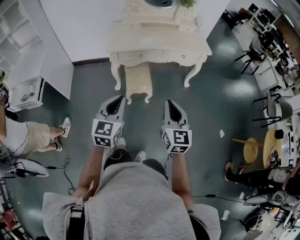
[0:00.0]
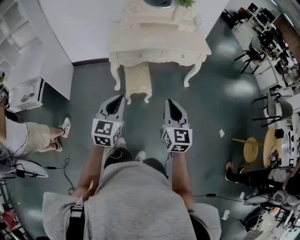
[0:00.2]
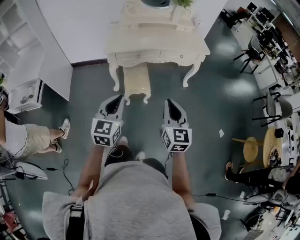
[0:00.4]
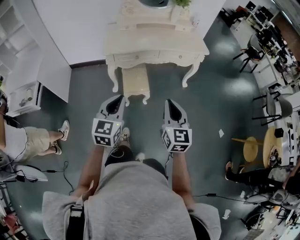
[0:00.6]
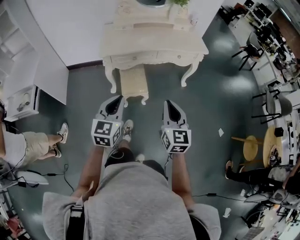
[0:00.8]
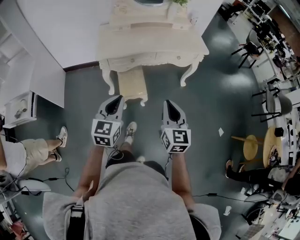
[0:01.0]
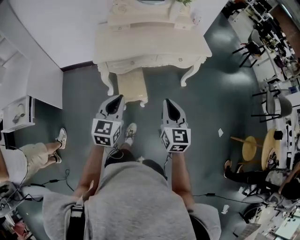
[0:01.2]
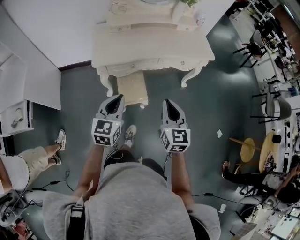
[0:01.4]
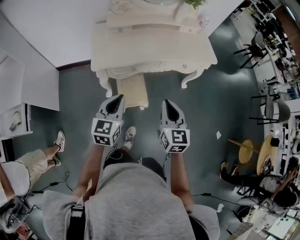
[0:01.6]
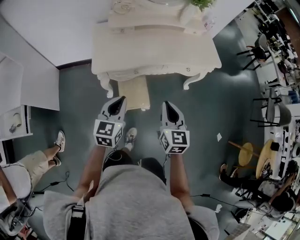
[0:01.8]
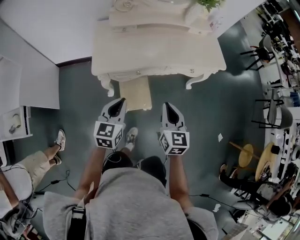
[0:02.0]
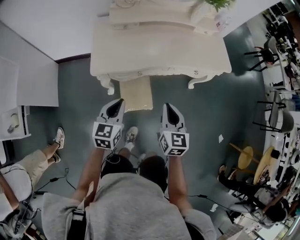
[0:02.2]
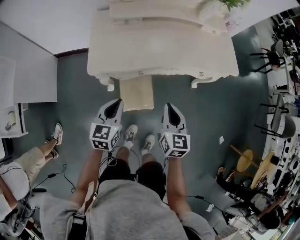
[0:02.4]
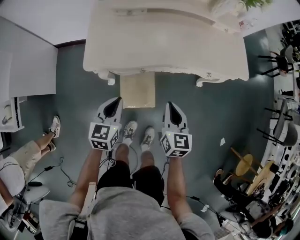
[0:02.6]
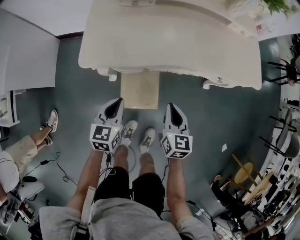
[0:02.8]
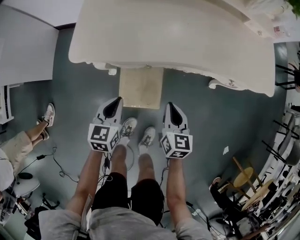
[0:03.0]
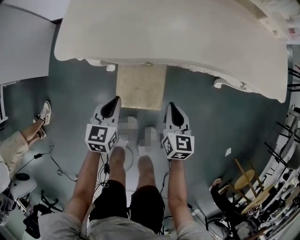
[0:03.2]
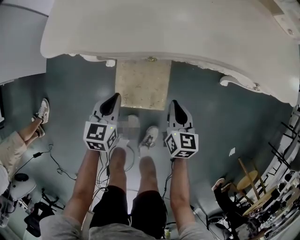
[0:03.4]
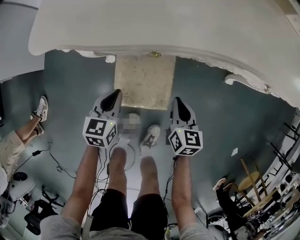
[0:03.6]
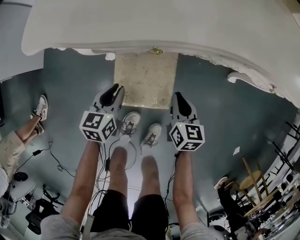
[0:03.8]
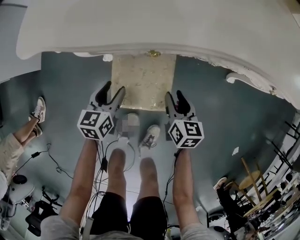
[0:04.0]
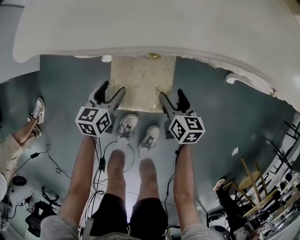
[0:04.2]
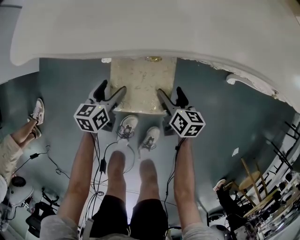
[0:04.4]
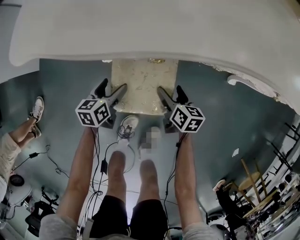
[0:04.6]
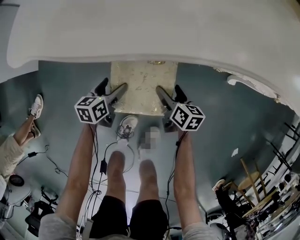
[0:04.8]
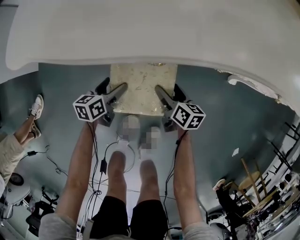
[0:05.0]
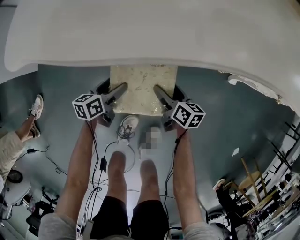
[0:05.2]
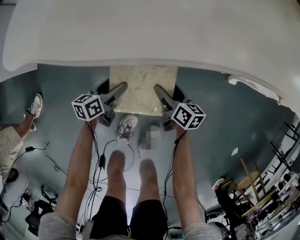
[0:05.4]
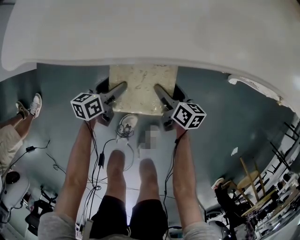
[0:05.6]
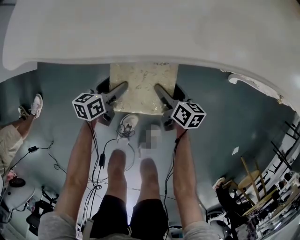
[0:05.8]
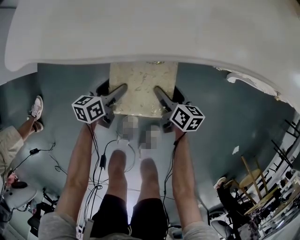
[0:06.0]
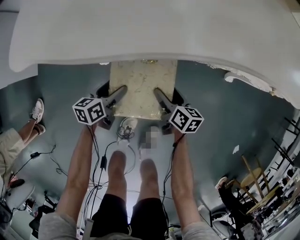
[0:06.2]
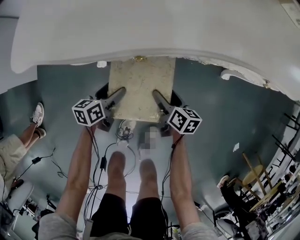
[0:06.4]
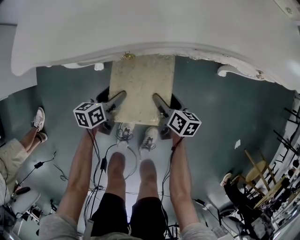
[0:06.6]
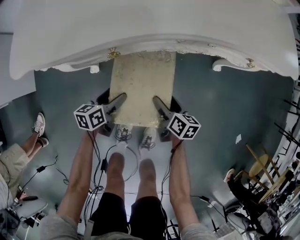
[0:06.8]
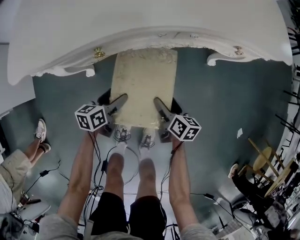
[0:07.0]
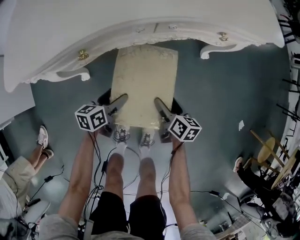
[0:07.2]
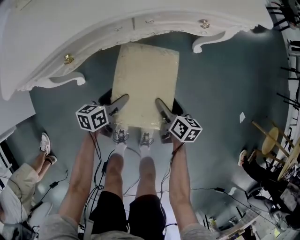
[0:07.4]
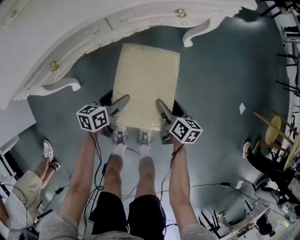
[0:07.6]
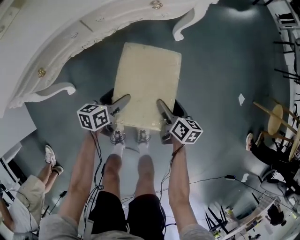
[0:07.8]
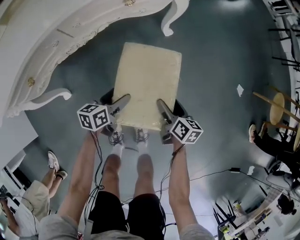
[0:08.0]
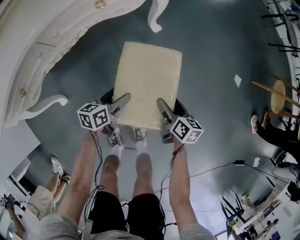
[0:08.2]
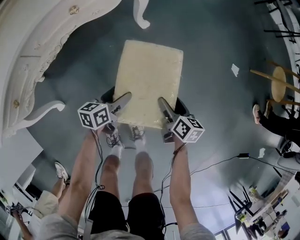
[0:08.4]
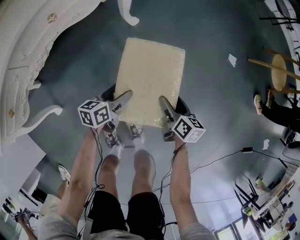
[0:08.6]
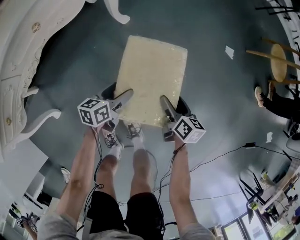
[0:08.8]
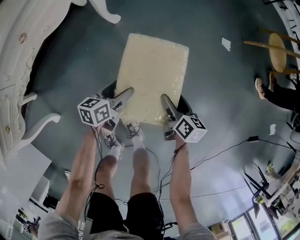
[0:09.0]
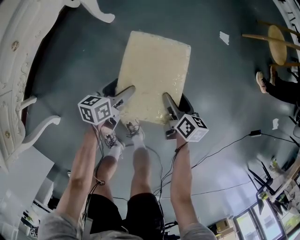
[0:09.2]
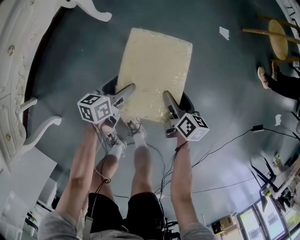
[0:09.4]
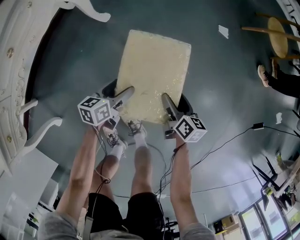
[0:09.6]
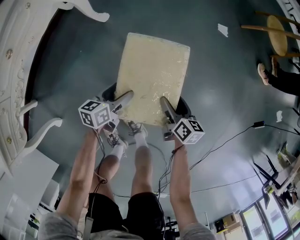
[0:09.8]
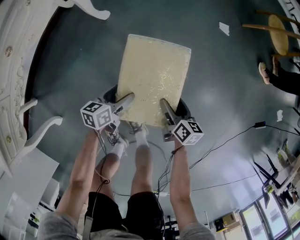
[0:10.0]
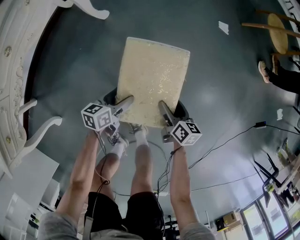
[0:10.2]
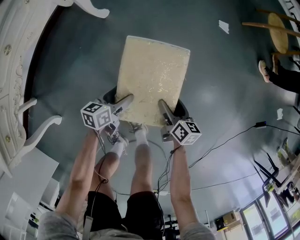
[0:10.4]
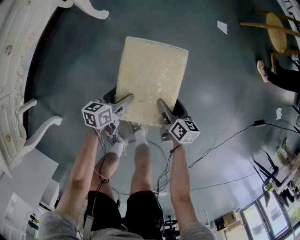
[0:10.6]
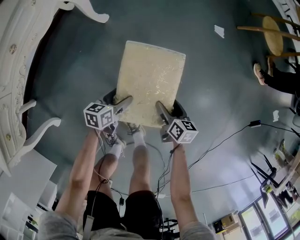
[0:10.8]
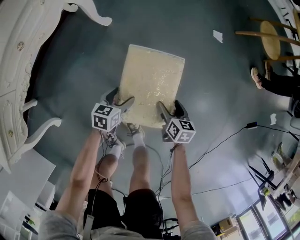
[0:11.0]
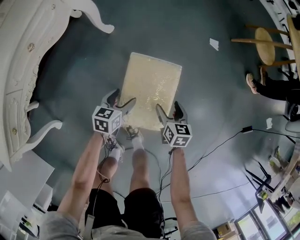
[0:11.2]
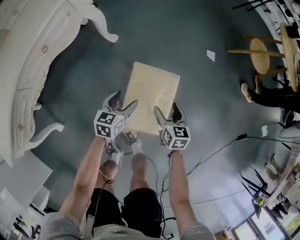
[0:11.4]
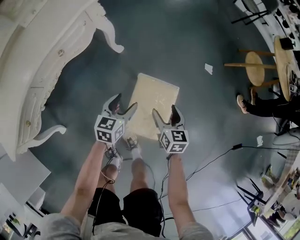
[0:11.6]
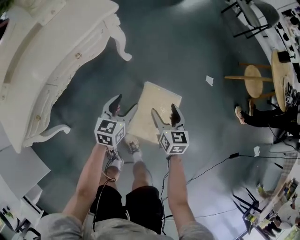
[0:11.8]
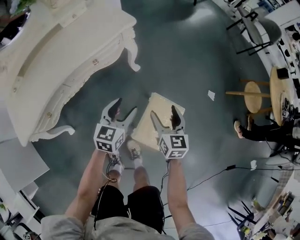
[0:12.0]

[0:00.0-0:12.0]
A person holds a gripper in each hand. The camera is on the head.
0.0 to 1.6 s: The grippers both shift forward by some 30 cm.
1.6 to 3.0 s: Both grippers move downward and forward, roughly 40 cm. The left gripper rotates about 20 degrees. Meanwhile the right gripper changes its angle by some 20 degrees.
3.0 to 4.4 s: The grippers both shift downward by approximately 25 cm. The left gripper rotates some 20 degrees, and opens up. The right gripper rotates some 20 degrees, and opens up.
4.4 to 6.0 s: The grippers move only a little.
6.0 to 7.6 s: The right gripper moves some 30 cm, and turns by roughly 30 degrees; the left gripper changes place by some 30 cm, and turns by about 30 degrees.
7.6 to 9.0 s: The right gripper shifts by roughly 35 cm, and rotates approximately 30 degrees, while the left gripper changes place by some 35 cm, and turns by some 30 degrees.
9.0 to 10.4 s: The left gripper goes approximately 5 cm downward. Meanwhile the right gripper is displaced backward and downward by about 10 cm.
10.4 to 12.0 s: The left gripper travels upward by approximately 40 cm, and turns by about 40 degrees. The right gripper heads upward and to the left, covering some 40 cm, and rotates around the line of its fingers by roughly 40 degrees, counterclockwise from behind.

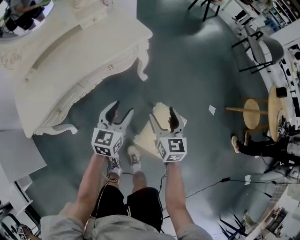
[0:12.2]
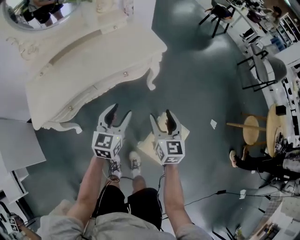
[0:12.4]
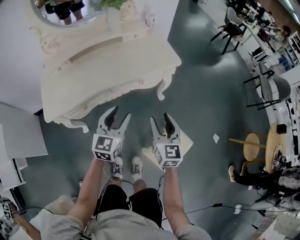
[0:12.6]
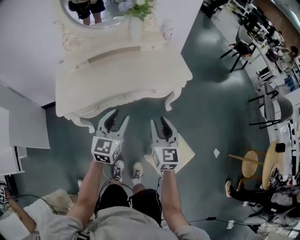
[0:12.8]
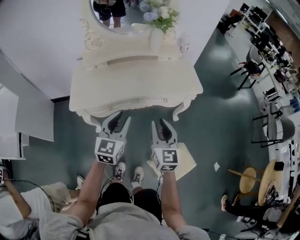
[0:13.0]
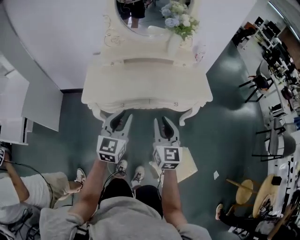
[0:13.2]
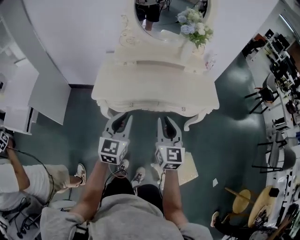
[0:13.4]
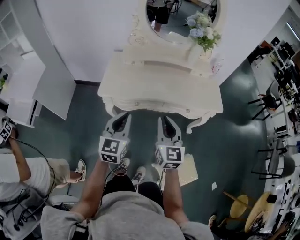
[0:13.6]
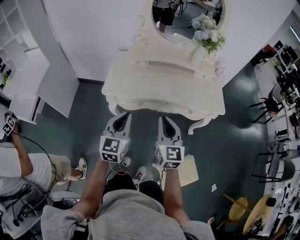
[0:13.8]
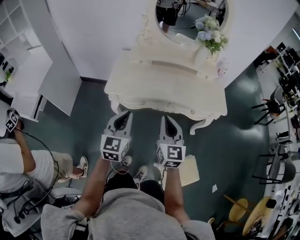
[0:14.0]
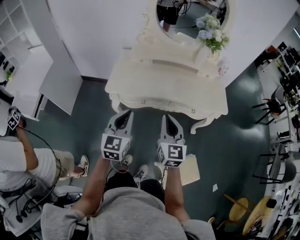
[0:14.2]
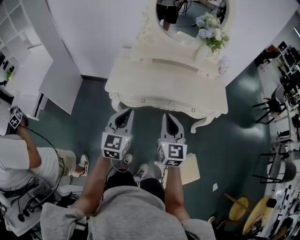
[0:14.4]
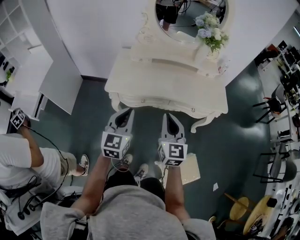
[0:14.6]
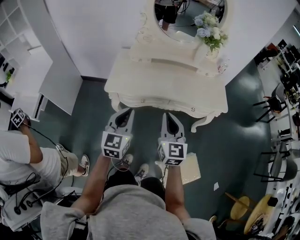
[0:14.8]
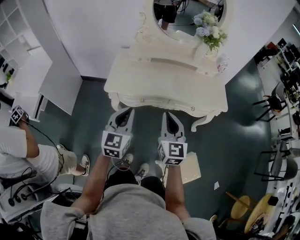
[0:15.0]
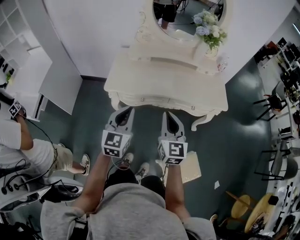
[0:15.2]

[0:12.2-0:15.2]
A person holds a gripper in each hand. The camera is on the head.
12.2 to 13.8 s: The left gripper ends up some 40 cm from where it was, turns by roughly 50 degrees, and closes up. The right gripper shifts by about 40 cm, rotates some 40 degrees, and closes up.
13.8 to 15.2 s: Both grippers stay about where they are.

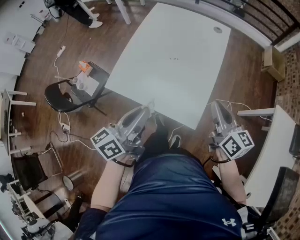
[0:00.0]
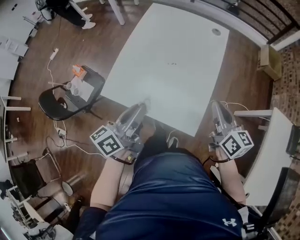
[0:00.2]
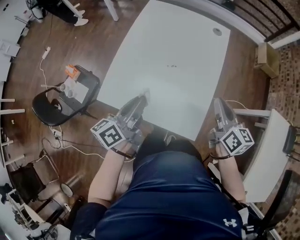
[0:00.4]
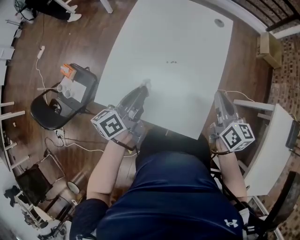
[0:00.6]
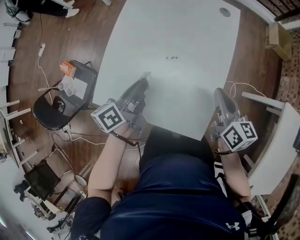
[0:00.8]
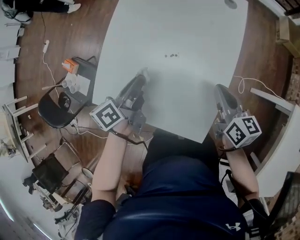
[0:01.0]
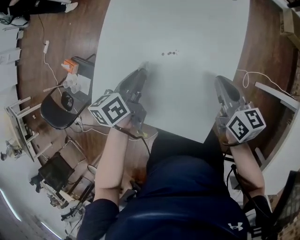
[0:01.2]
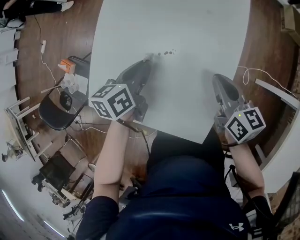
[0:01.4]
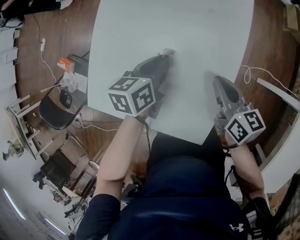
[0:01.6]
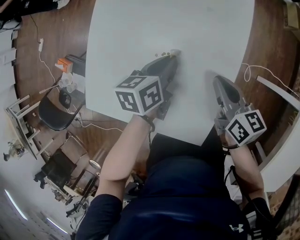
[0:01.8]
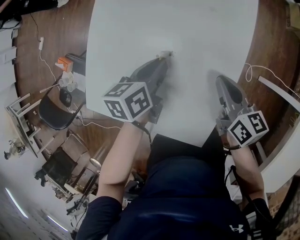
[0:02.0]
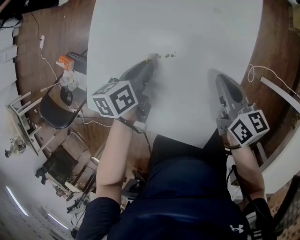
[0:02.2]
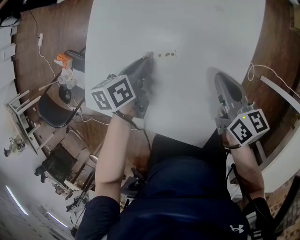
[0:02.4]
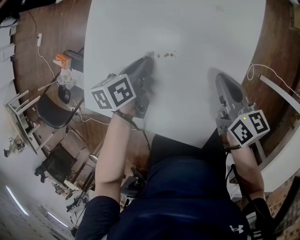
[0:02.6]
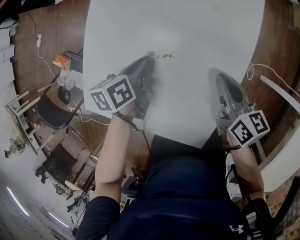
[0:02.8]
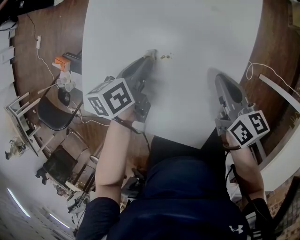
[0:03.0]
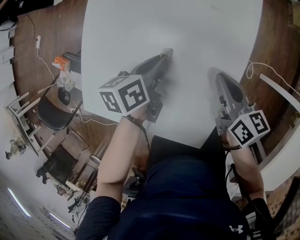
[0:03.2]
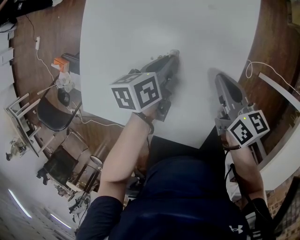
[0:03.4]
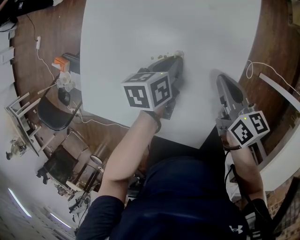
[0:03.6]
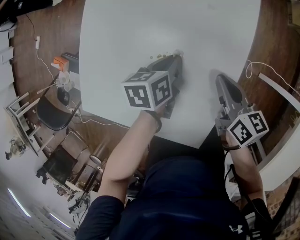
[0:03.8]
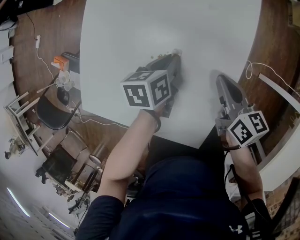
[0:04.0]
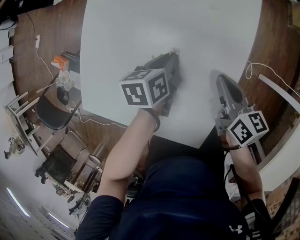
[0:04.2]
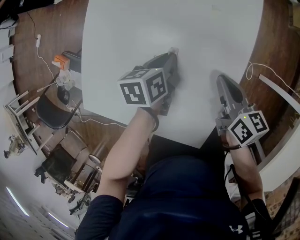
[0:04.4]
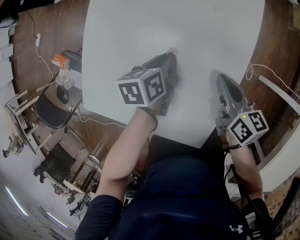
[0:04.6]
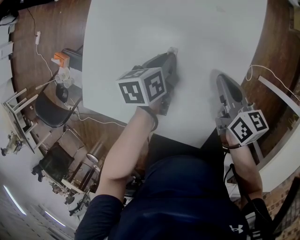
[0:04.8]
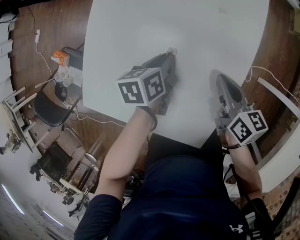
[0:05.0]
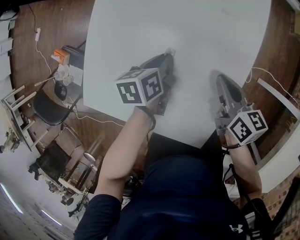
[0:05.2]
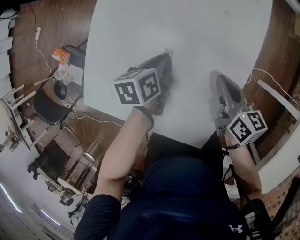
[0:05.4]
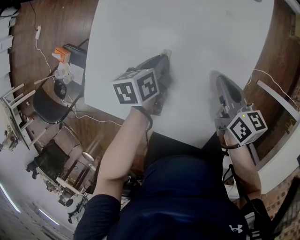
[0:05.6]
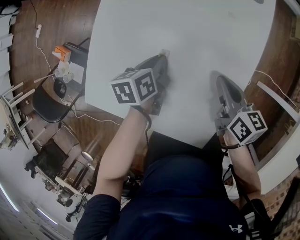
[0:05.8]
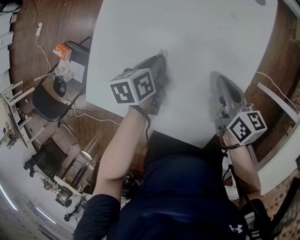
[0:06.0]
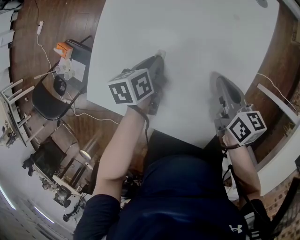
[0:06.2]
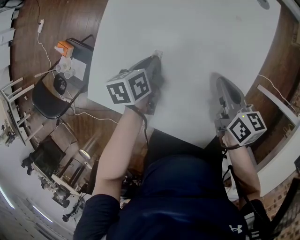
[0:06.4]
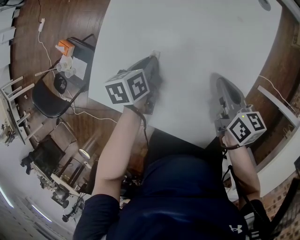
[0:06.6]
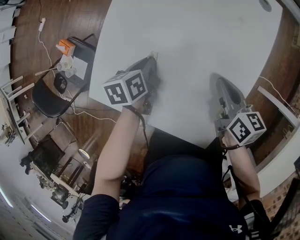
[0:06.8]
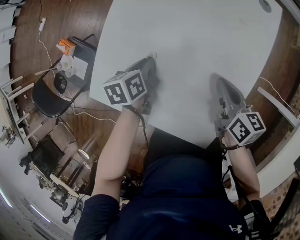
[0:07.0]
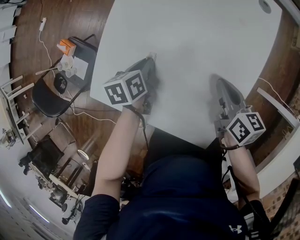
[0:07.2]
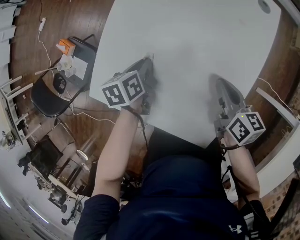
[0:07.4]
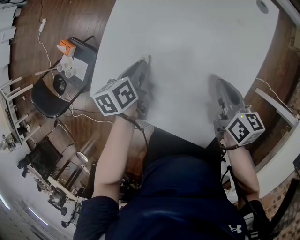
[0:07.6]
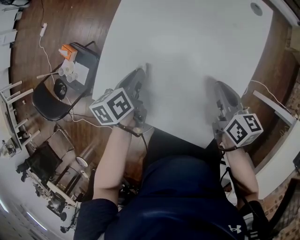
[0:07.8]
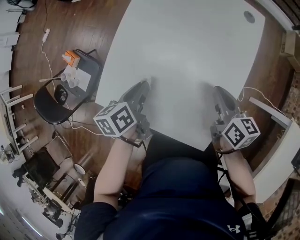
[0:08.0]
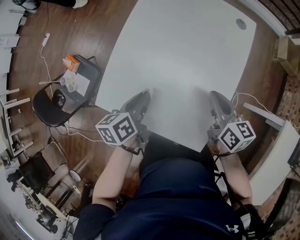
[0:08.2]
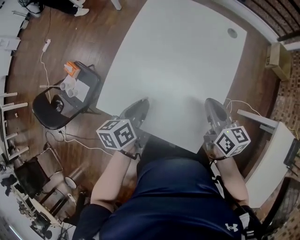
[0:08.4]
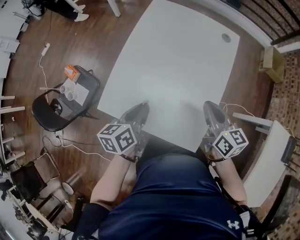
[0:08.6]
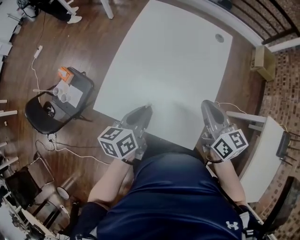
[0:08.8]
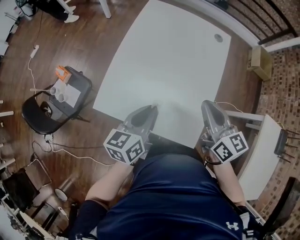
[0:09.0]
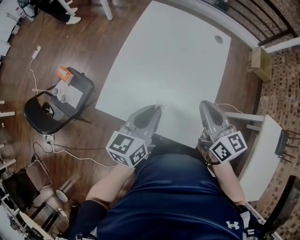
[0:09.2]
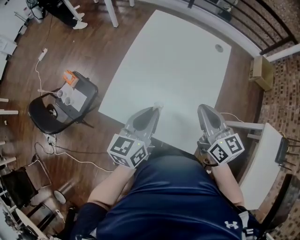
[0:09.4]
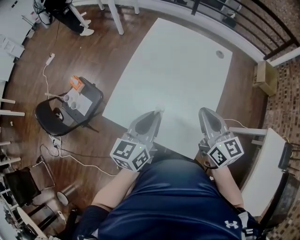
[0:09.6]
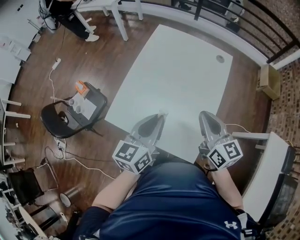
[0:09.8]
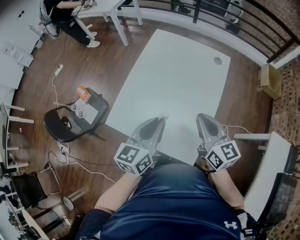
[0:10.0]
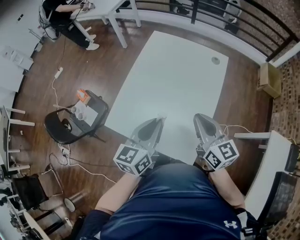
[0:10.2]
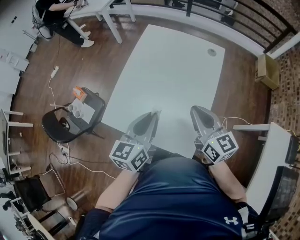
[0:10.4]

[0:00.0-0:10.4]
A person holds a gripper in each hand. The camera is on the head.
0.0 to 1.4 s: The grippers both shift forward and downward by approximately 30 cm. The left gripper points its fingers some 30 degrees further downward.
1.4 to 3.0 s: The left gripper reaches roughly 10 cm to the right, then returns.
3.0 to 4.4 s: The left gripper is displaced to the right by roughly 5 cm.
4.4 to 6.0 s: The left gripper is displaced to the left by roughly 10 cm.
6.0 to 7.4 s: The left gripper heads to the left, covering some 10 cm.
7.4 to 9.0 s: The left gripper moves upward and backward, roughly 25 cm, and tilts its fingers roughly 30 degrees upward; the right gripper travels upward by approximately 20 cm, and rotates some 30 degrees.
9.0 to 10.4 s: The left gripper shifts some 5 cm upward.
